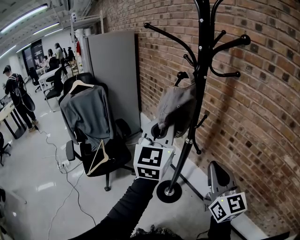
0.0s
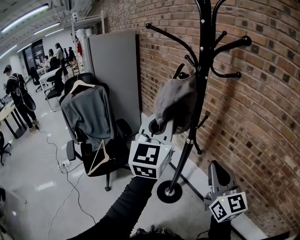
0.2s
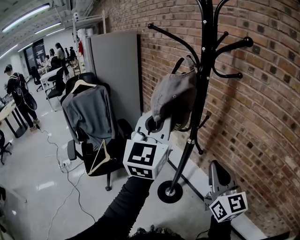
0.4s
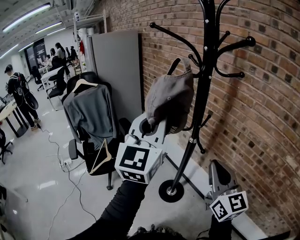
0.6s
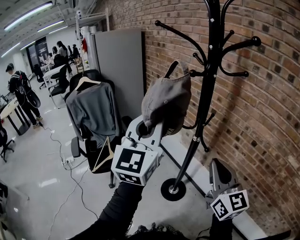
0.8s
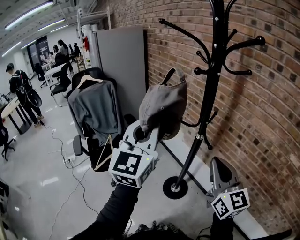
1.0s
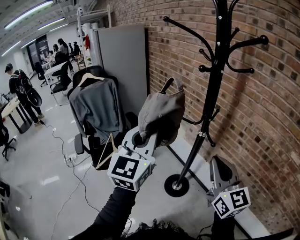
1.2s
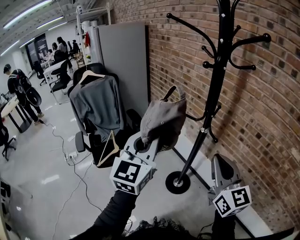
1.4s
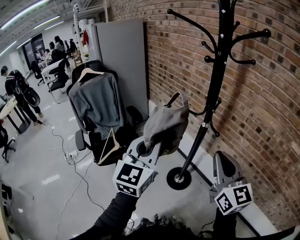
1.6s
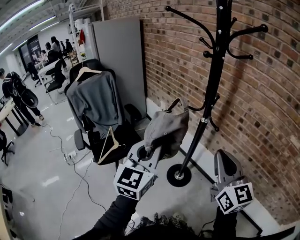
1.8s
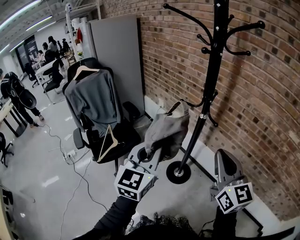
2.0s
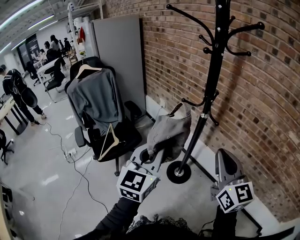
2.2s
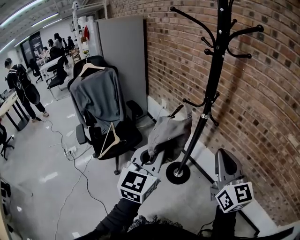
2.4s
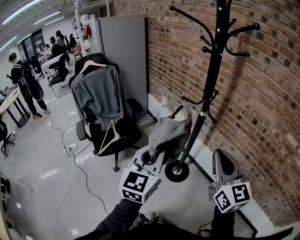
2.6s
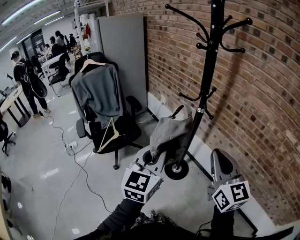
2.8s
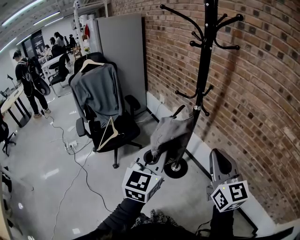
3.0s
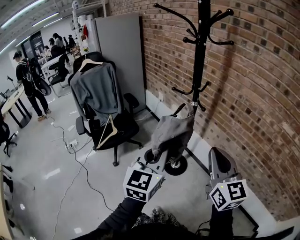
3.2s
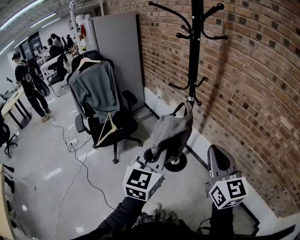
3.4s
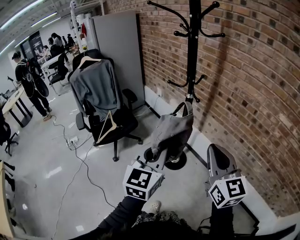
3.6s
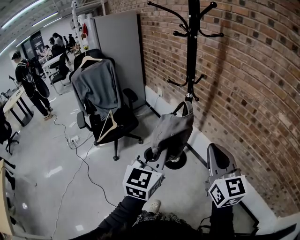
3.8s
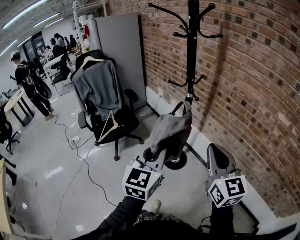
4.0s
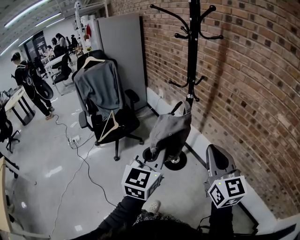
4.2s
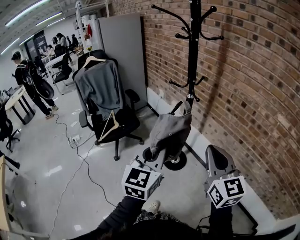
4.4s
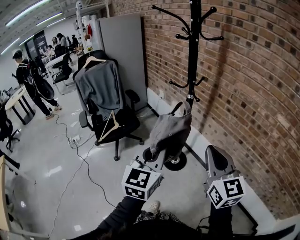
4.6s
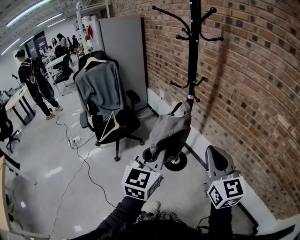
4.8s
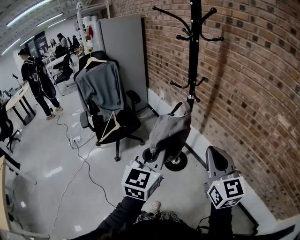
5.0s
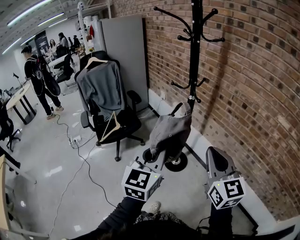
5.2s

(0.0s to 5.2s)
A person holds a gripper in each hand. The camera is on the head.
0.0s - 1.8s: The right gripper shifts about 10 cm to the left and backward; the left gripper shifts about 20 cm backward, to the left and downward.
1.8s - 3.4s: The grippers both shift backward and to the right by approximately 15 cm.
3.4s - 5.2s: The left gripper shifts some 5 cm backward.

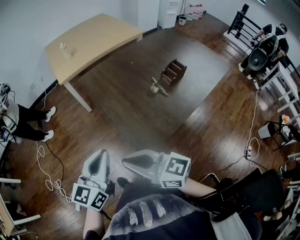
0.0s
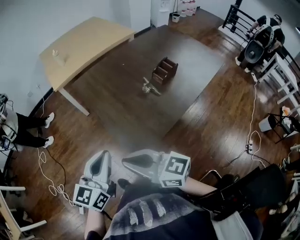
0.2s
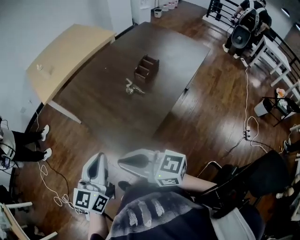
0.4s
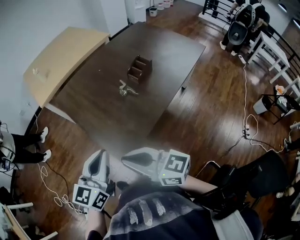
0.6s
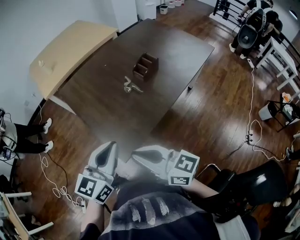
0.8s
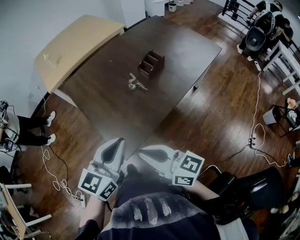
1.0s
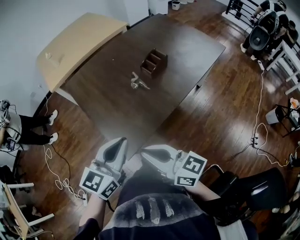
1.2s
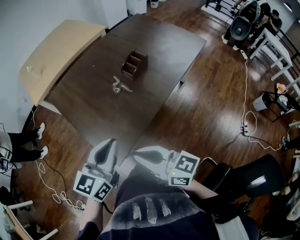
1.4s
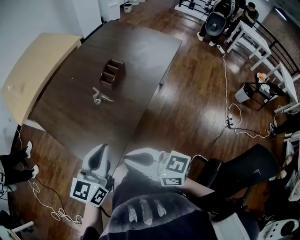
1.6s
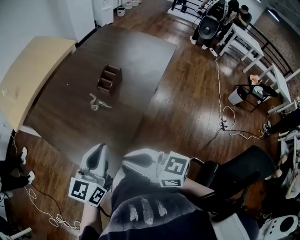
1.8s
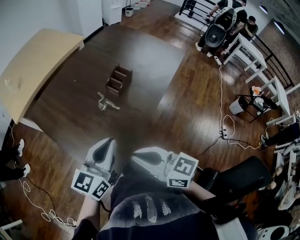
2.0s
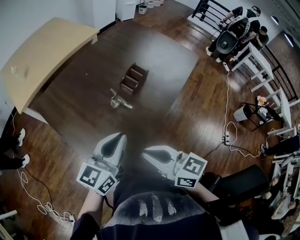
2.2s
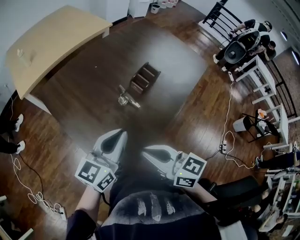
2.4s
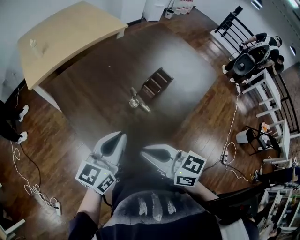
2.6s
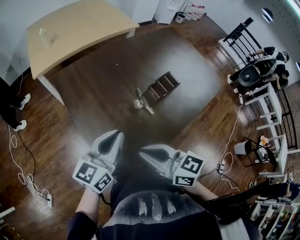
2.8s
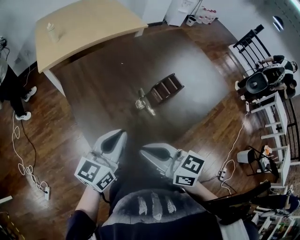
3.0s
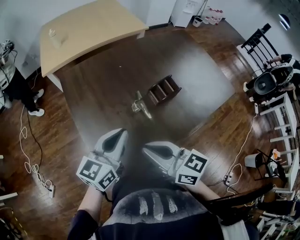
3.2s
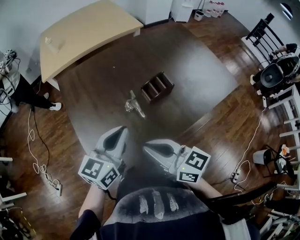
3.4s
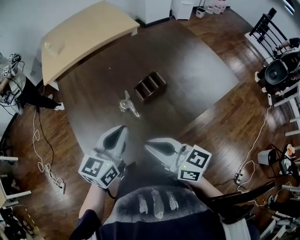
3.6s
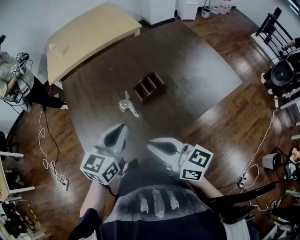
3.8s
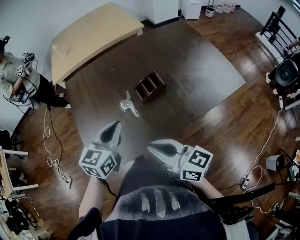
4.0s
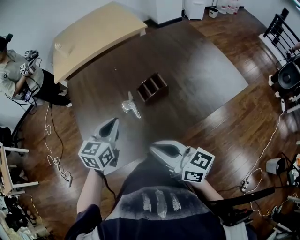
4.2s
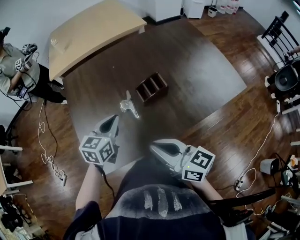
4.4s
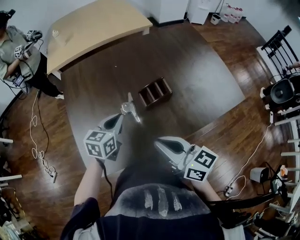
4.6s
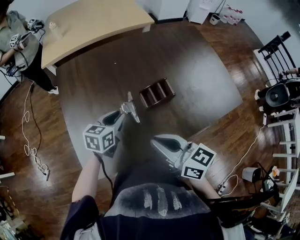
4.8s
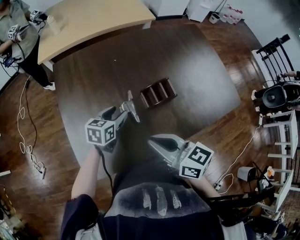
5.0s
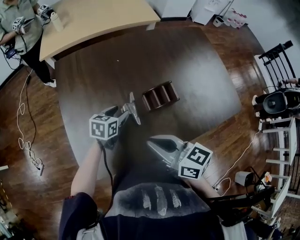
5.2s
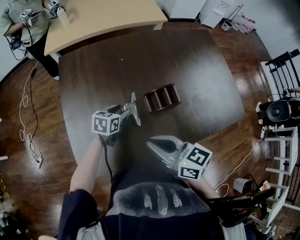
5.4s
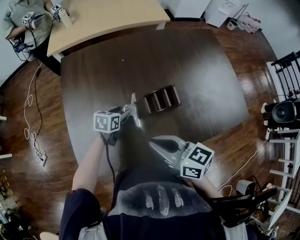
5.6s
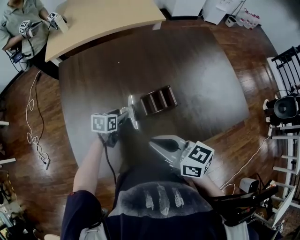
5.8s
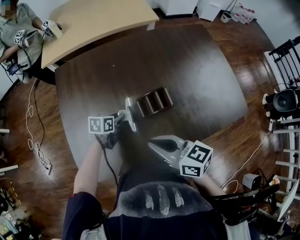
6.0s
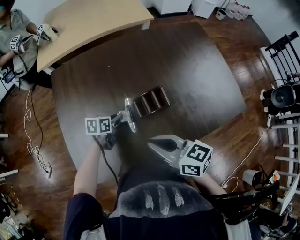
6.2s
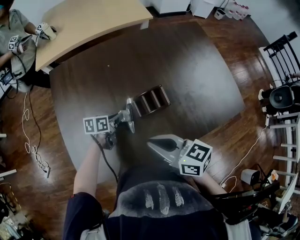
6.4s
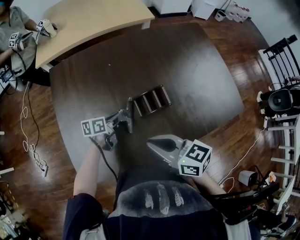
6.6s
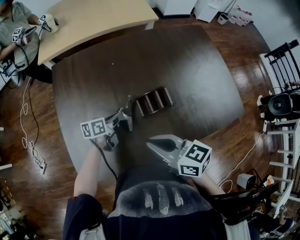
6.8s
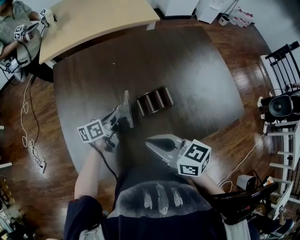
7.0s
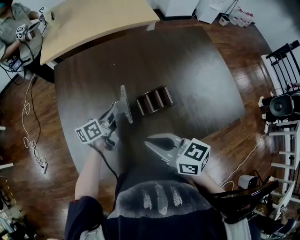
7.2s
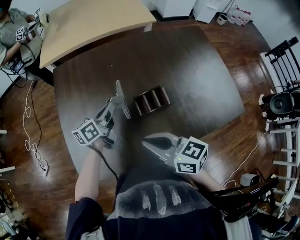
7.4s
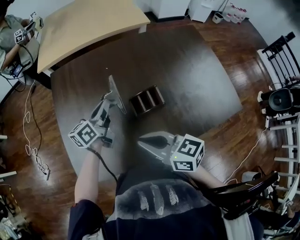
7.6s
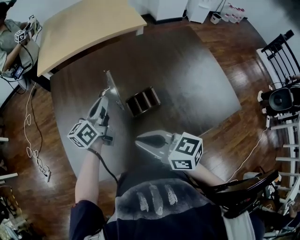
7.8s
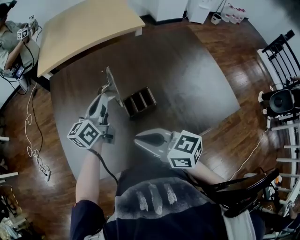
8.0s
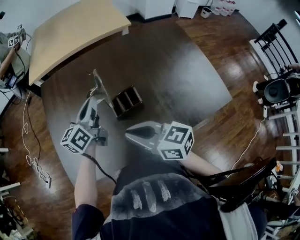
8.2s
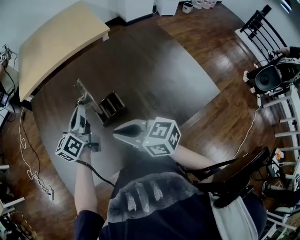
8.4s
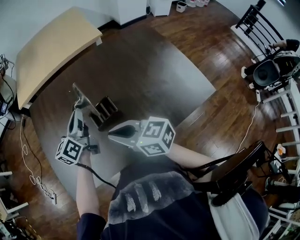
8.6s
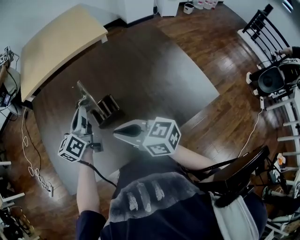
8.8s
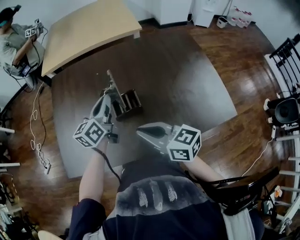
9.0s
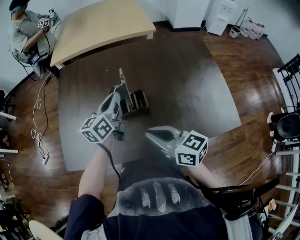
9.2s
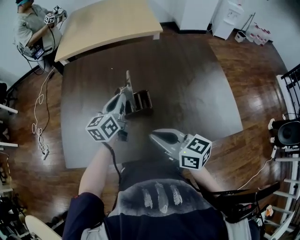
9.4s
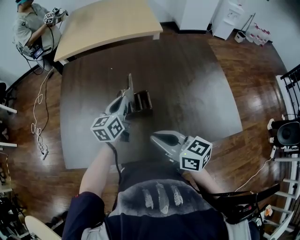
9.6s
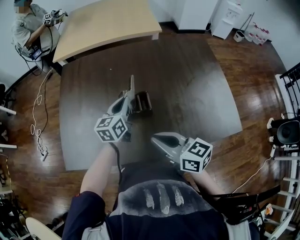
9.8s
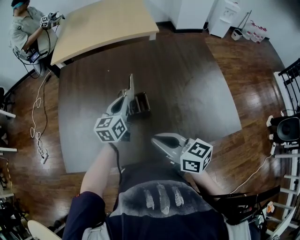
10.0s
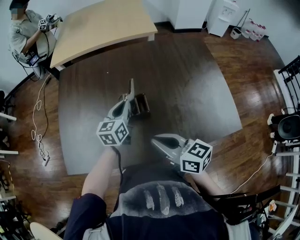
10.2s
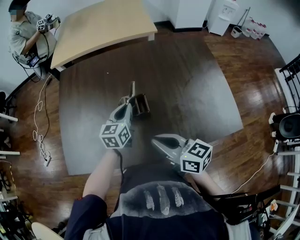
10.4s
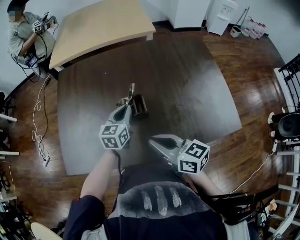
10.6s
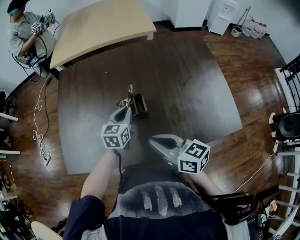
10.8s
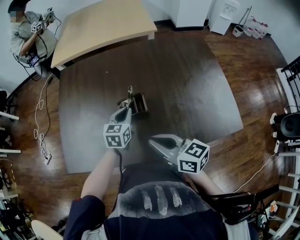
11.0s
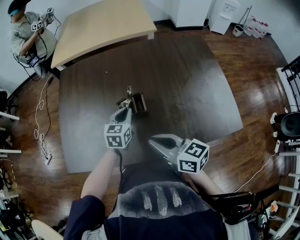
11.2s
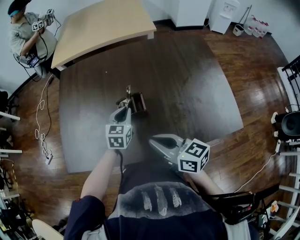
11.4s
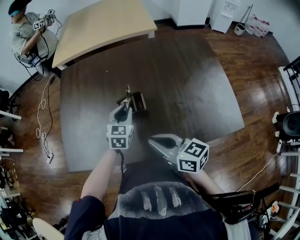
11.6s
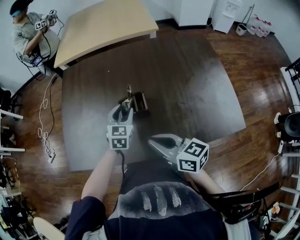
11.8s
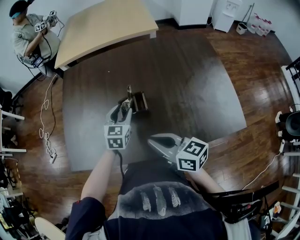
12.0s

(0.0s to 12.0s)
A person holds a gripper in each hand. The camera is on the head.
0.0s - 1.6s: Both grippers travel together to the right, some 25 cm. The right gripper turns by some 20 degrees. The left gripper turns by roughly 20 degrees.
1.6s - 3.0s: The right gripper heads forward, covering about 10 cm, and swivels roughly 20 degrees; the left gripper shifts roughly 15 cm forward and to the left.
3.0s - 4.4s: The right gripper is displaced to the right by roughly 20 cm; the left gripper travels to the right and downward by roughly 15 cm, and rotates roughly 30 degrees.
4.4s - 6.0s: The right gripper moves forward, roughly 10 cm; the left gripper shifts about 20 cm downward and forward, swivels some 30 degrees, and opens its fingers.
6.0s - 7.6s: The left gripper shifts about 15 cm upward, points its fingers some 40 degrees further upward, and closes up.
7.6s - 9.0s: The right gripper goes about 15 cm to the right; the left gripper heads to the right, backward and upward, covering roughly 15 cm.
9.0s - 10.4s: The left gripper travels downward by about 10 cm, and rotates approximately 20 degrees.
10.4s - 12.0s: The left gripper swivels about 20 degrees, and opens.

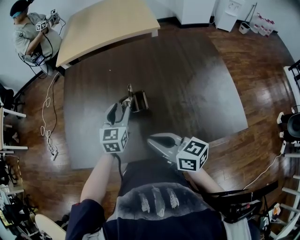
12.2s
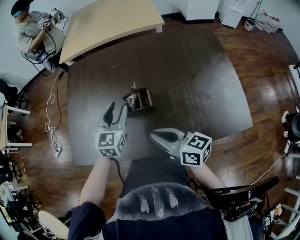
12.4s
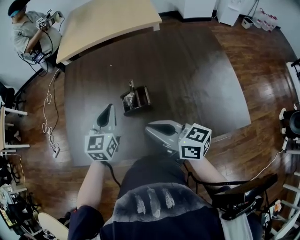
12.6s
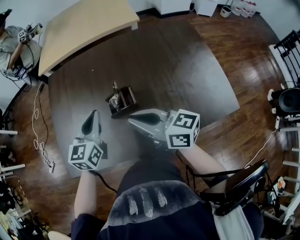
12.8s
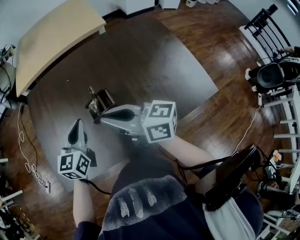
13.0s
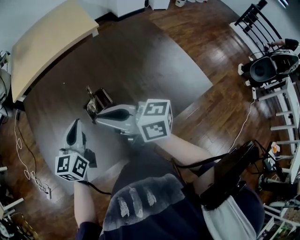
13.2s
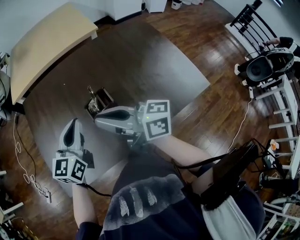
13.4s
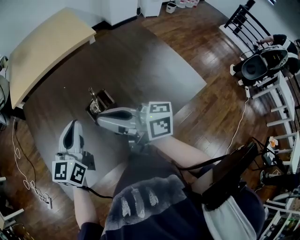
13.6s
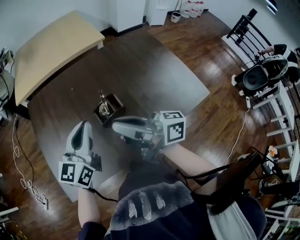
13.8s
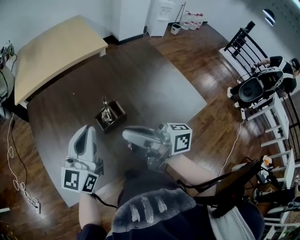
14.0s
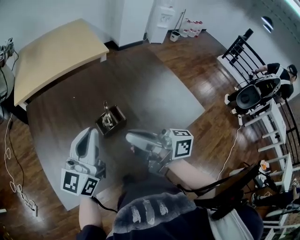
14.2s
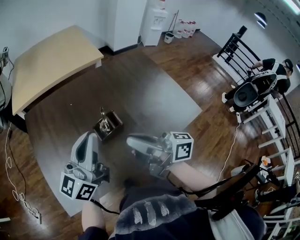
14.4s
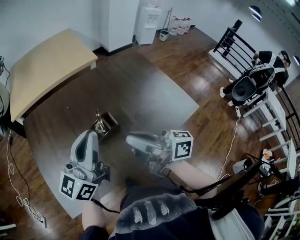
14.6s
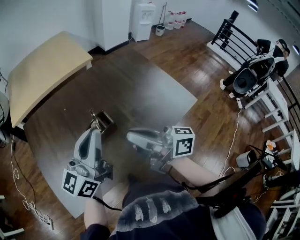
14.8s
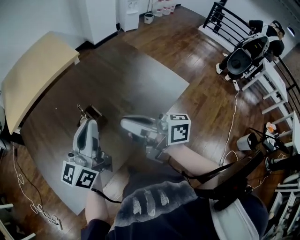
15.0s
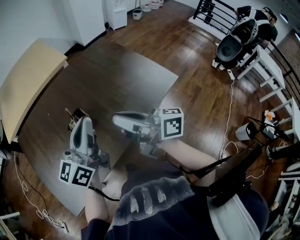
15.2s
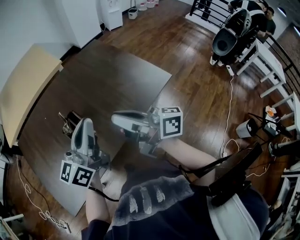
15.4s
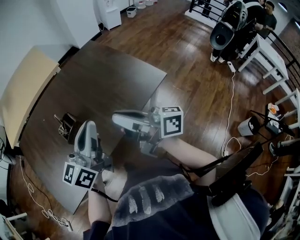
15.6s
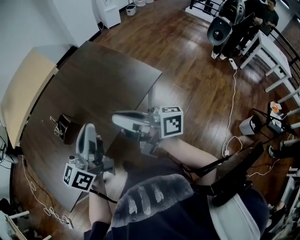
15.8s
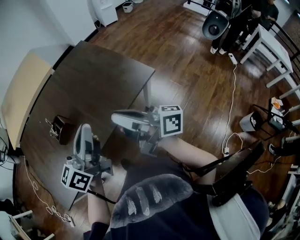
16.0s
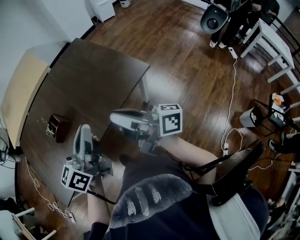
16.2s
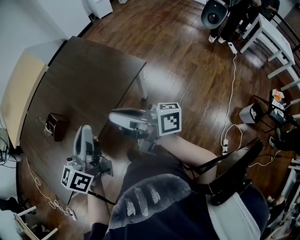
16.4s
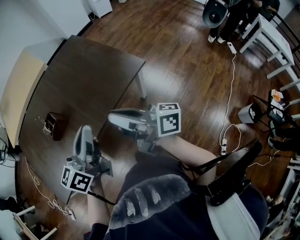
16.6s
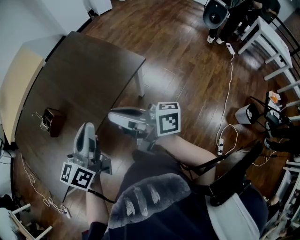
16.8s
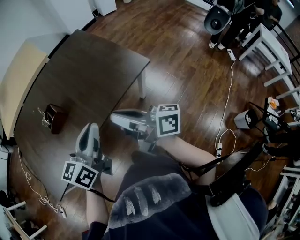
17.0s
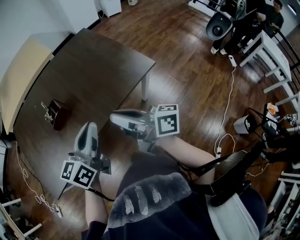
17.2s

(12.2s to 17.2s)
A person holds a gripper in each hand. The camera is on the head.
12.2s - 13.8s: The two grippers go some 15 cm upward and to the left. The right gripper rotates approximately 30 degrees; the left gripper turns by some 40 degrees, and closes.
13.8s - 15.6s: The left gripper shifts about 25 cm to the right and backward, and changes its angle by some 30 degrees; the right gripper goes approximately 20 cm to the right, and turns by approximately 20 degrees.
15.6s - 17.2s: The right gripper is displaced backward and to the right by about 10 cm, while the left gripper travels backward, to the right and downward by approximately 10 cm.

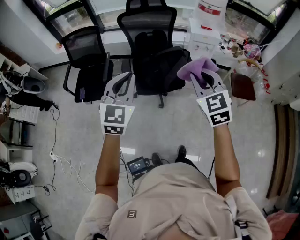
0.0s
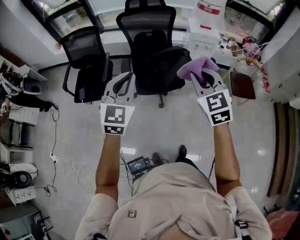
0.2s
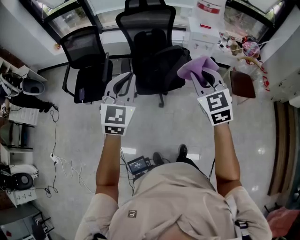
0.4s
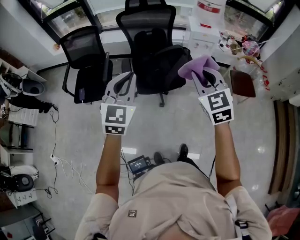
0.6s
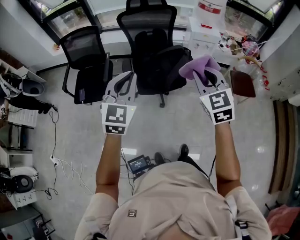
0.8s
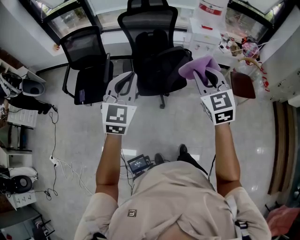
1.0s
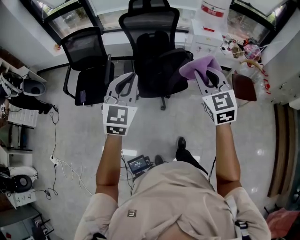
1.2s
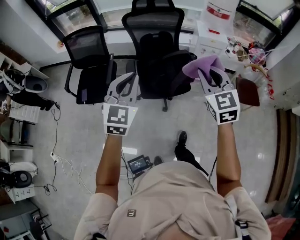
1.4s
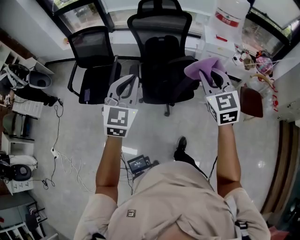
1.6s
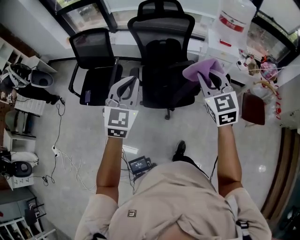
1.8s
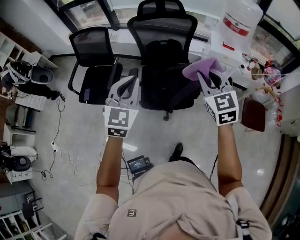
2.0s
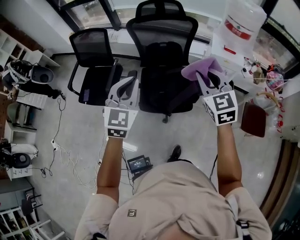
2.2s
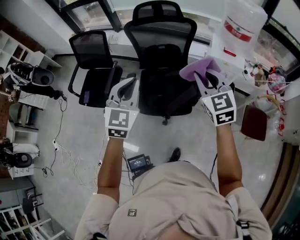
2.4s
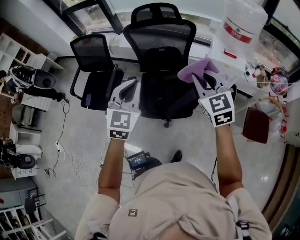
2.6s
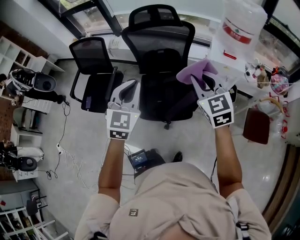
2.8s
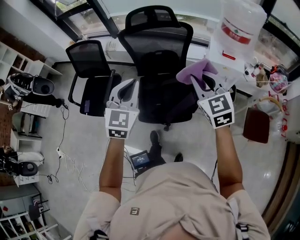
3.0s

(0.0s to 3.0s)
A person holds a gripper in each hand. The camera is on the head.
0.0s - 1.6s: The grippers both shift forward by roughly 10 cm.
1.6s - 3.0s: The two grippers go approximately 25 cm forward and to the right.
